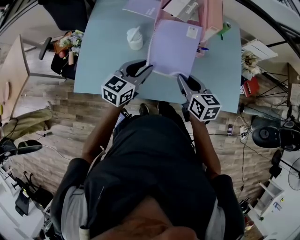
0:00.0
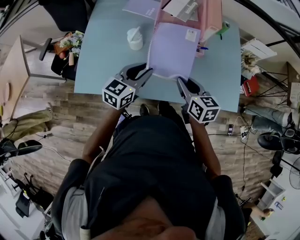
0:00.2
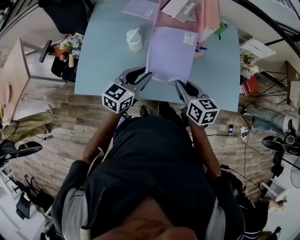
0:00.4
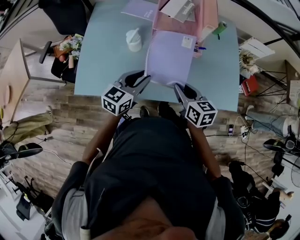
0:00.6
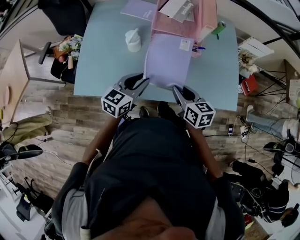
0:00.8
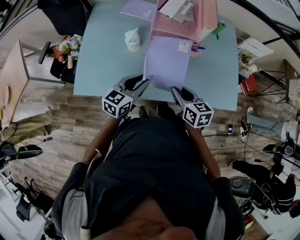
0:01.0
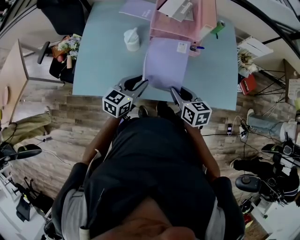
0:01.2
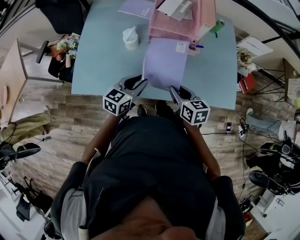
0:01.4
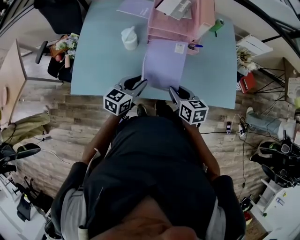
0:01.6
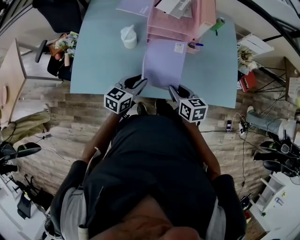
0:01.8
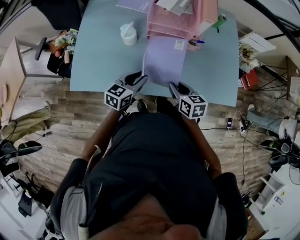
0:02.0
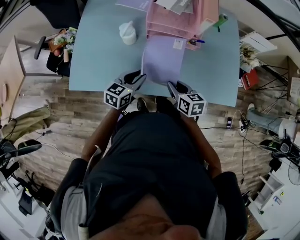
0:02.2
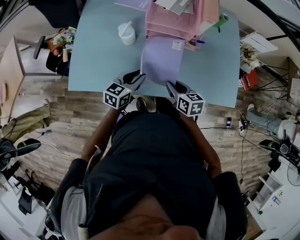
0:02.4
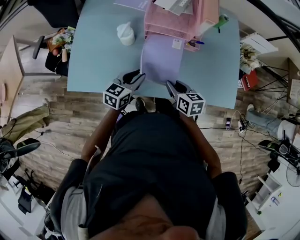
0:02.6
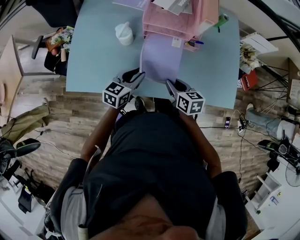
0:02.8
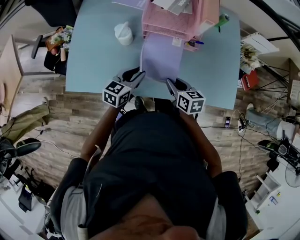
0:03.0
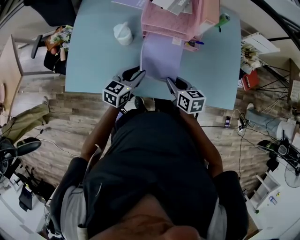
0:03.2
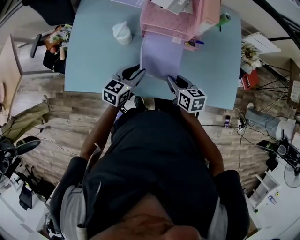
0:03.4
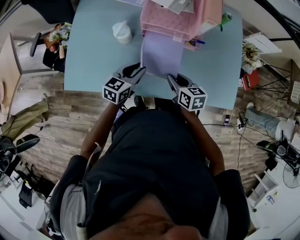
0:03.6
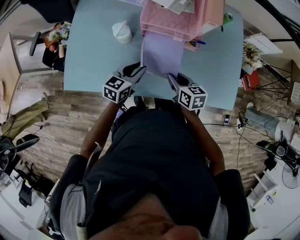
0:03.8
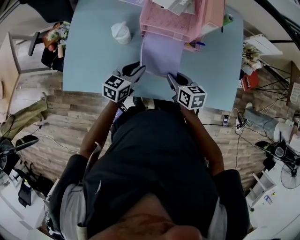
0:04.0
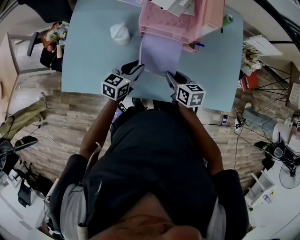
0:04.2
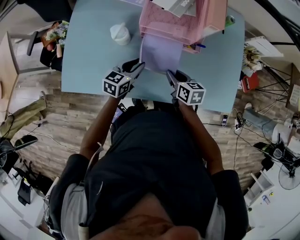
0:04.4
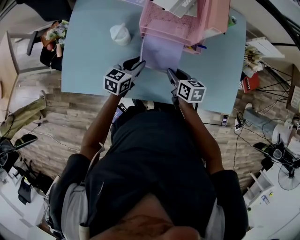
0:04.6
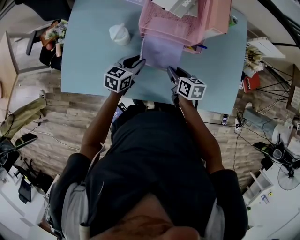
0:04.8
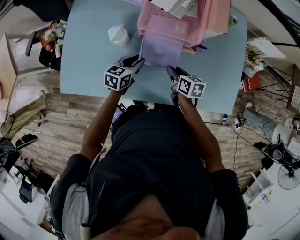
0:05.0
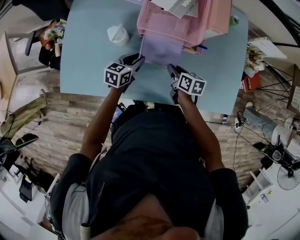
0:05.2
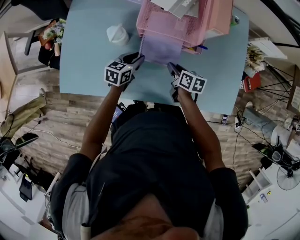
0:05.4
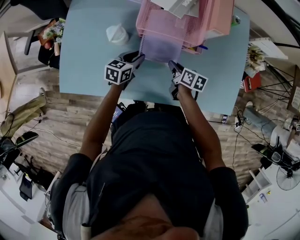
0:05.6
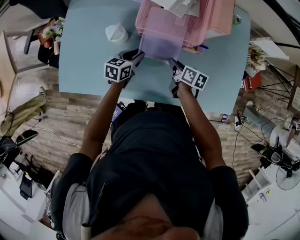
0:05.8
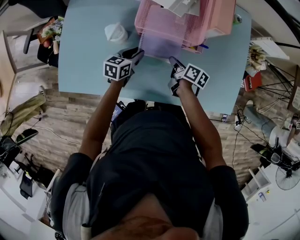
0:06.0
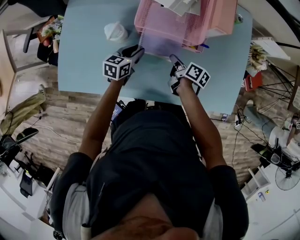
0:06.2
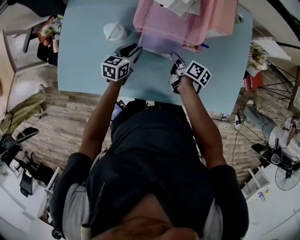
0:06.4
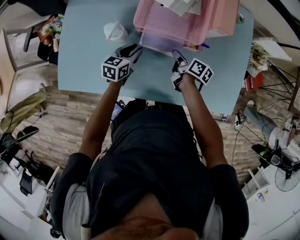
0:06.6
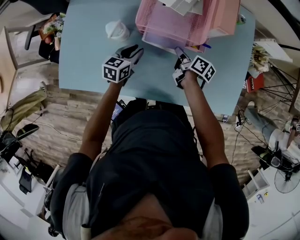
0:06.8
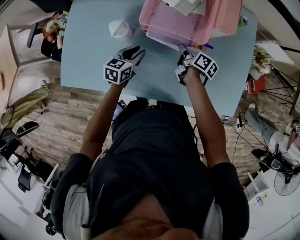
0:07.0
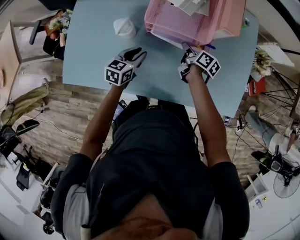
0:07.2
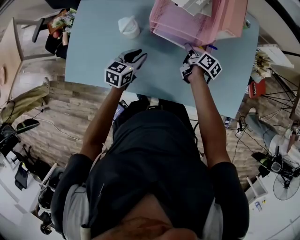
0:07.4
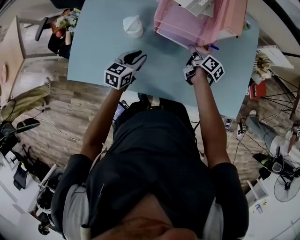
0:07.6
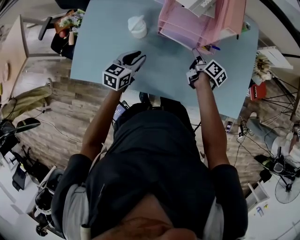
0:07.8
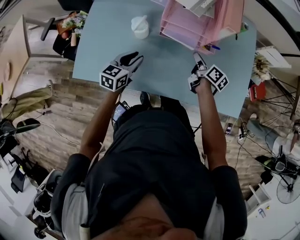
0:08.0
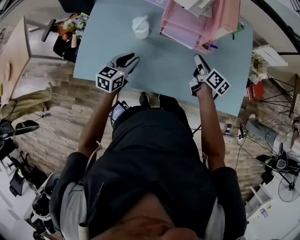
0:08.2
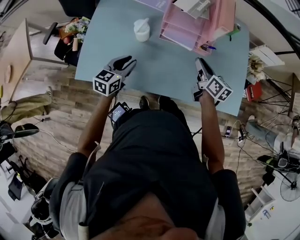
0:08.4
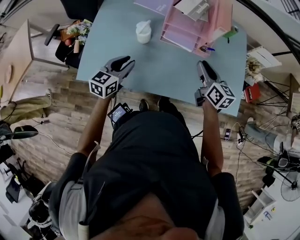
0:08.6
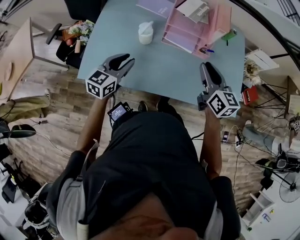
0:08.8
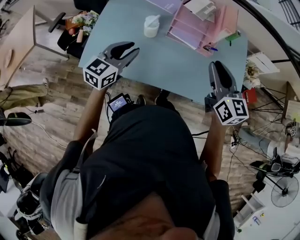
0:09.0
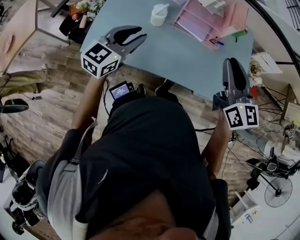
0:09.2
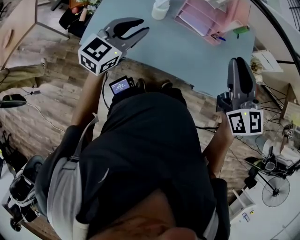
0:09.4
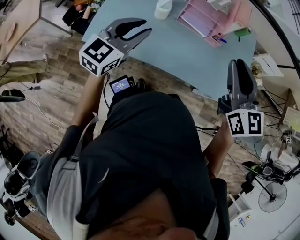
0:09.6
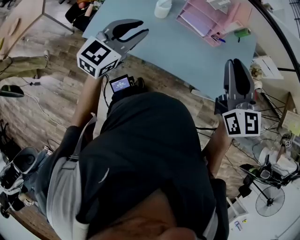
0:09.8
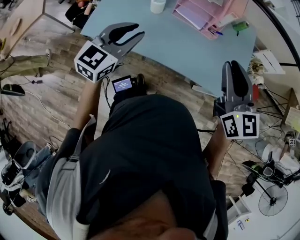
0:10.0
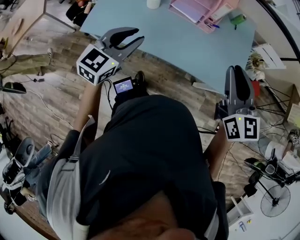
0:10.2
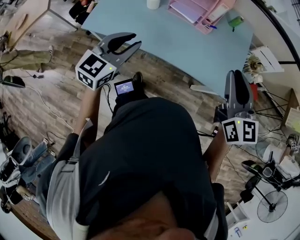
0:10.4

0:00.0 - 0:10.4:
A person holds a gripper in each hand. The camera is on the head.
0:00.0 - 0:01.4: The two grippers go roughly 10 cm downward and backward.
0:01.4 - 0:03.0: The right gripper heads downward, covering roughly 5 cm. The left gripper shifts by about 5 cm.
0:03.0 - 0:04.4: Both grippers travel together forward, about 5 cm.
0:04.4 - 0:06.0: The left gripper goes some 10 cm downward and forward. The right gripper travels forward and downward by approximately 10 cm, and turns by about 30 degrees.
0:06.0 - 0:07.4: The left gripper ends up roughly 5 cm from where it was. Meanwhile the right gripper goes approximately 5 cm forward.
0:07.4 - 0:09.0: The right gripper is displaced upward and backward by roughly 40 cm, and rolls counterclockwise, seen from behind, by some 60 degrees, while the left gripper is displaced upward, backward and to the left by about 25 cm, and swivels approximately 30 degrees.
0:09.0 - 0:10.4: The left gripper travels backward and to the right by roughly 20 cm, while the right gripper goes roughly 20 cm to the right and backward.

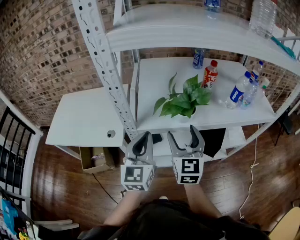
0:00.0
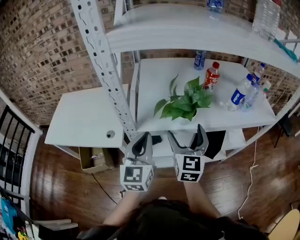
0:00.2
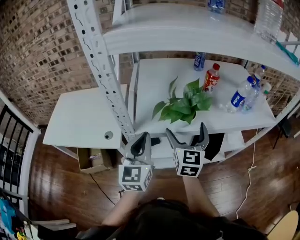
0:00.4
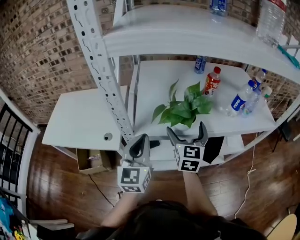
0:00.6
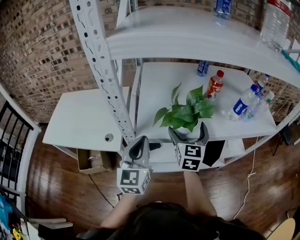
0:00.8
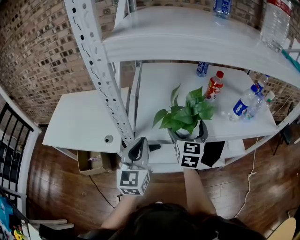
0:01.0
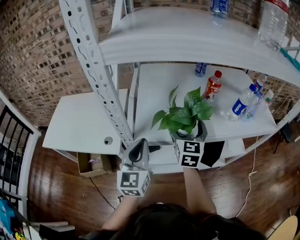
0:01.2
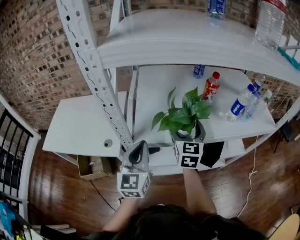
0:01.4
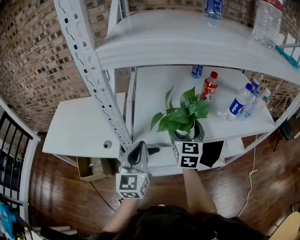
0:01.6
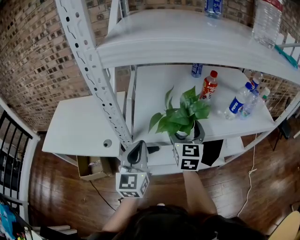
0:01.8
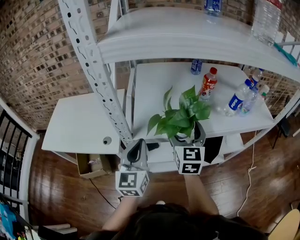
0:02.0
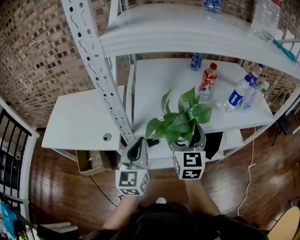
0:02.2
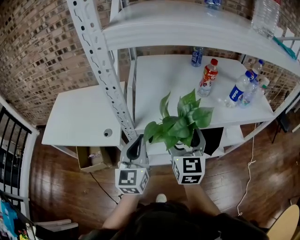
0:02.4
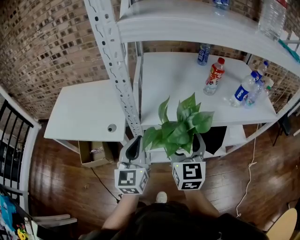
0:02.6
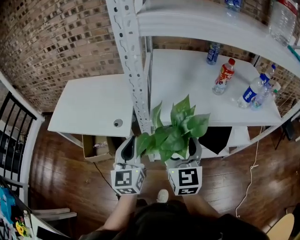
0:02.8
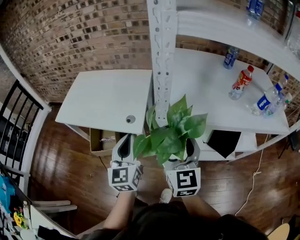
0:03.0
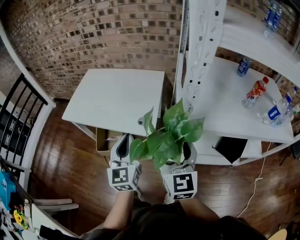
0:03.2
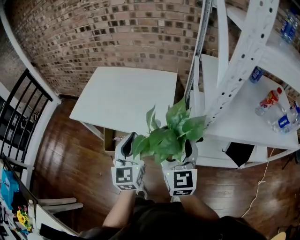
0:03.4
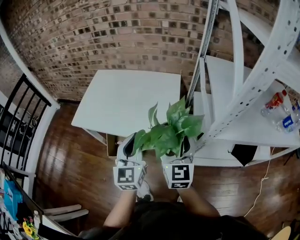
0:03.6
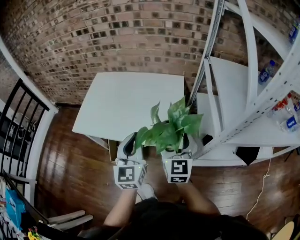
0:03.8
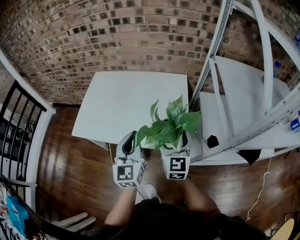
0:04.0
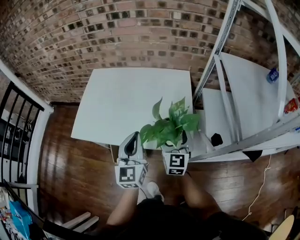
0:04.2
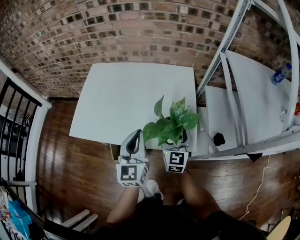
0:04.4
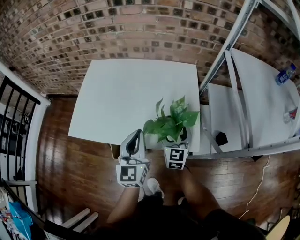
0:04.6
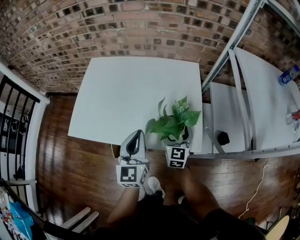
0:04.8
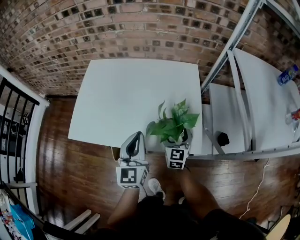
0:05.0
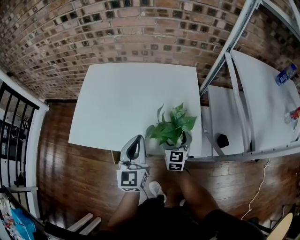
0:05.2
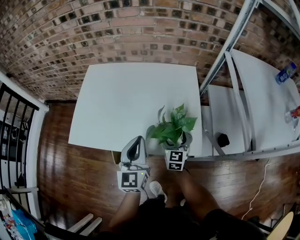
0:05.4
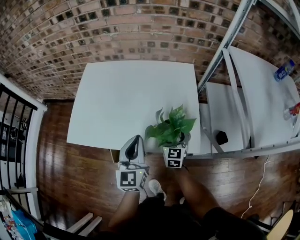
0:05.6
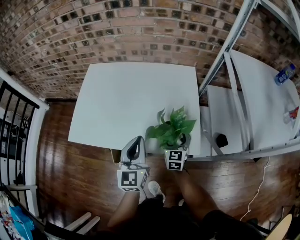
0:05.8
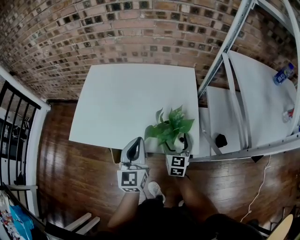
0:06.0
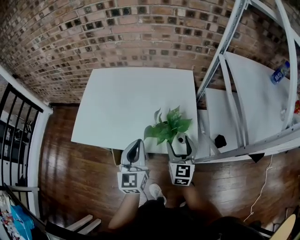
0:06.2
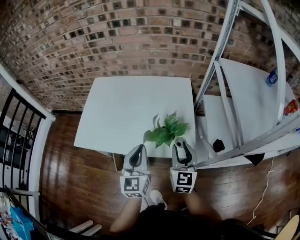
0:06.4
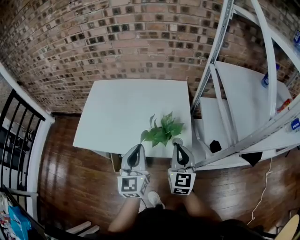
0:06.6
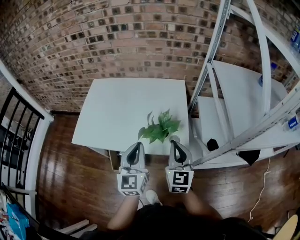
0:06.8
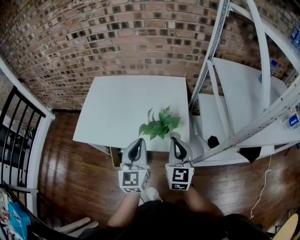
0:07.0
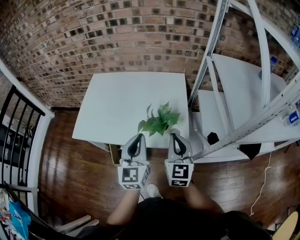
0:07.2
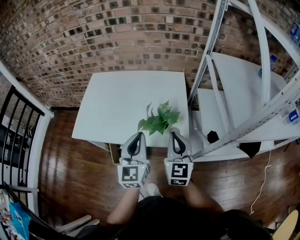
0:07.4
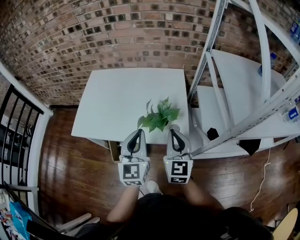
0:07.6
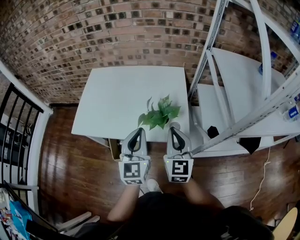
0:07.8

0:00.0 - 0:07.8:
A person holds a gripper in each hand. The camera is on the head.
0:00.0 - 0:01.6: The right gripper goes some 10 cm forward.
0:01.6 - 0:03.2: The right gripper heads to the left and backward, covering approximately 30 cm, and rotates roughly 30 degrees. Meanwhile the left gripper heads to the left, covering about 25 cm, and changes its angle by about 20 degrees.
0:03.2 - 0:04.6: The right gripper heads forward, downward and to the left, covering roughly 40 cm. The left gripper is displaced to the left, forward and downward by some 30 cm.
0:04.6 - 0:06.2: The right gripper travels backward by some 5 cm, and moves roughly 10 cm downward and comes back.
0:06.2 - 0:07.8: The right gripper moves upward and backward, some 15 cm, and closes up, while the left gripper is displaced upward by about 5 cm.

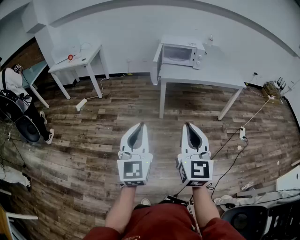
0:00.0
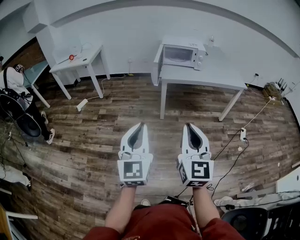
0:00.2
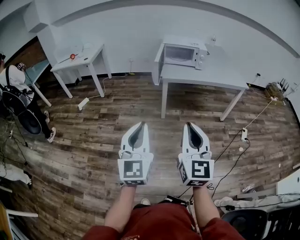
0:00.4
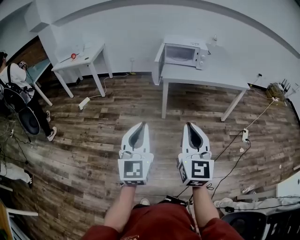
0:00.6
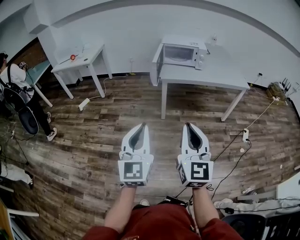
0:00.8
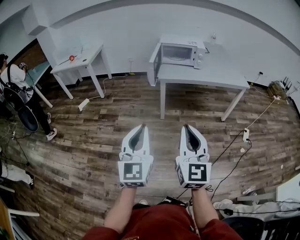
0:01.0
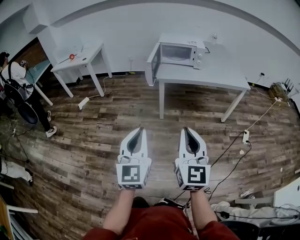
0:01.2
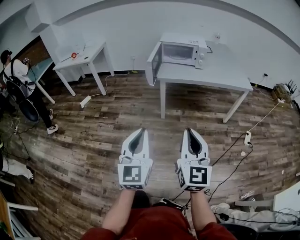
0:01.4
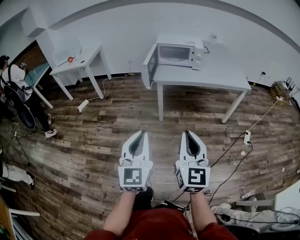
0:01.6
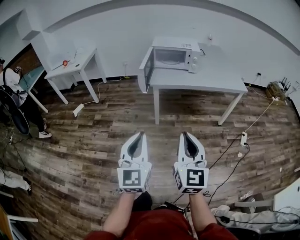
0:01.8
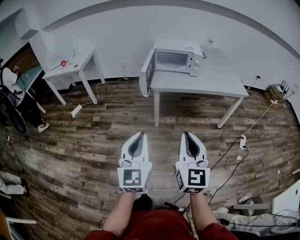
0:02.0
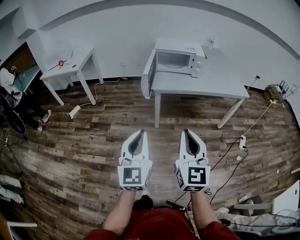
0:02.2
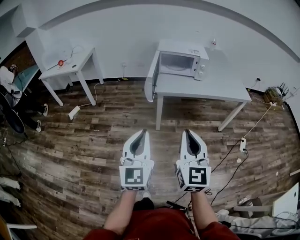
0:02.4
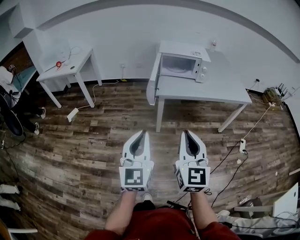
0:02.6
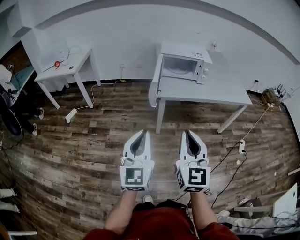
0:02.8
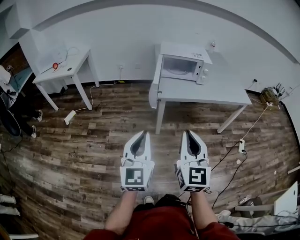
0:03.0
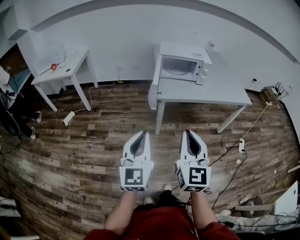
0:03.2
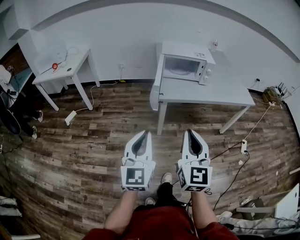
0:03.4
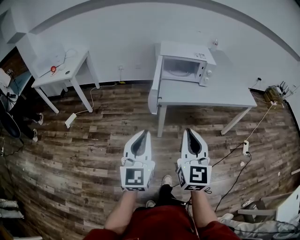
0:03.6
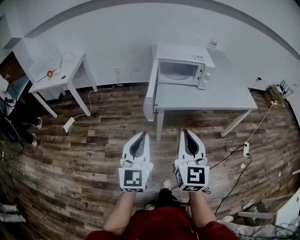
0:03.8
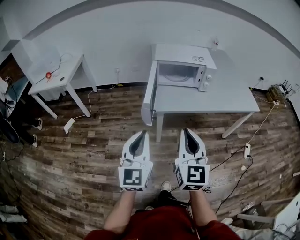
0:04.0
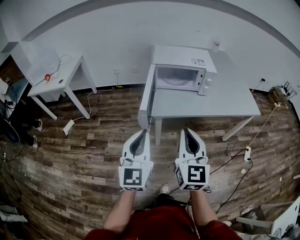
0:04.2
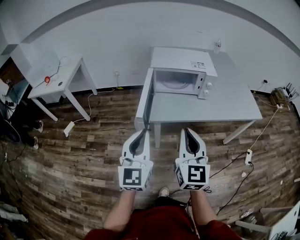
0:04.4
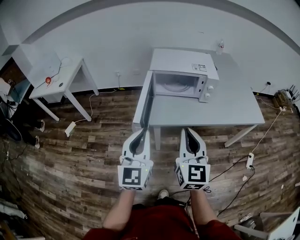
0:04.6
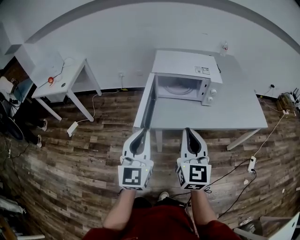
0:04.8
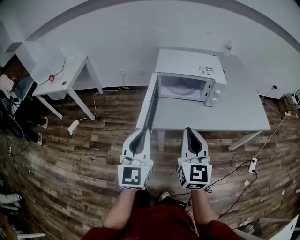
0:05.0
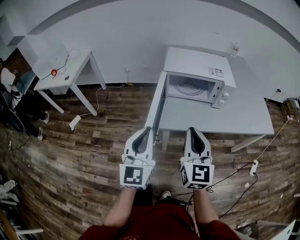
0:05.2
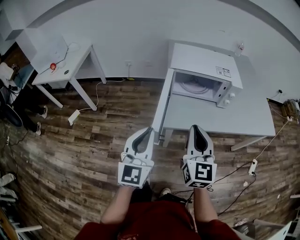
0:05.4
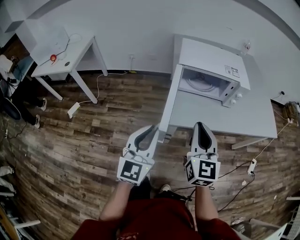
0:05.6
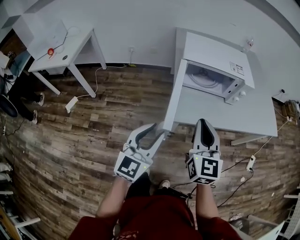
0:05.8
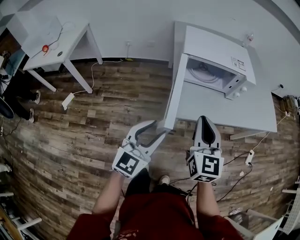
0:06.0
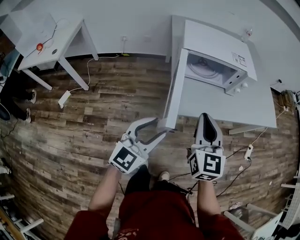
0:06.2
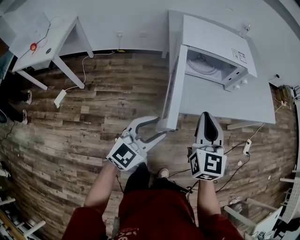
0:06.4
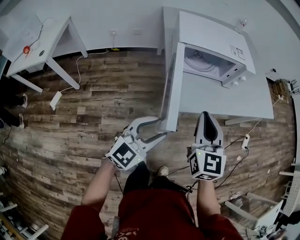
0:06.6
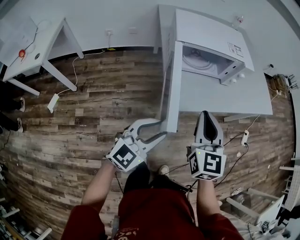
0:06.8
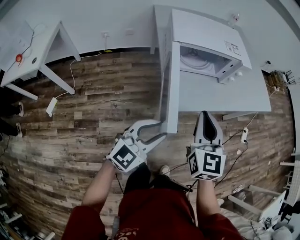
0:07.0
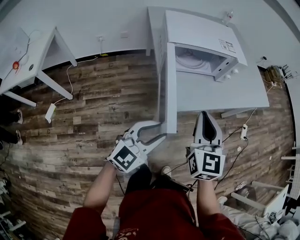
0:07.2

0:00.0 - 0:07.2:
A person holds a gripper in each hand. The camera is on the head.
0:00.0 - 0:01.4: The left gripper shifts roughly 10 cm to the right. The right gripper heads to the right and forward, covering approximately 10 cm.
0:01.4 - 0:02.8: The two grippers go some 25 cm forward and to the left.
0:02.8 - 0:04.4: The two grippers go roughly 25 cm forward.
0:04.4 - 0:05.8: The left gripper is displaced forward, downward and to the left by some 15 cm. Meanwhile the right gripper is displaced forward and to the left by about 15 cm.
0:05.8 - 0:07.2: The left gripper goes some 5 cm downward, and rotates approximately 30 degrees.
